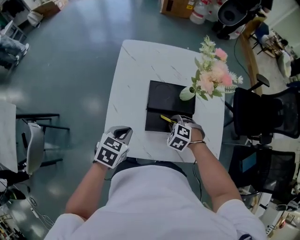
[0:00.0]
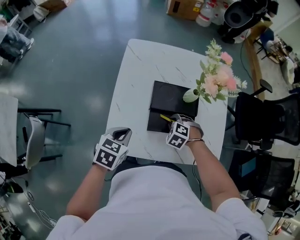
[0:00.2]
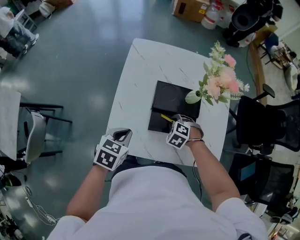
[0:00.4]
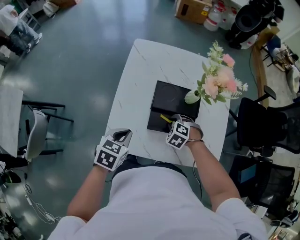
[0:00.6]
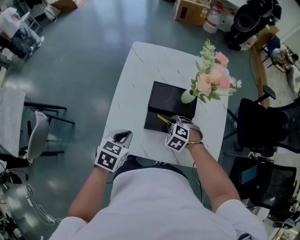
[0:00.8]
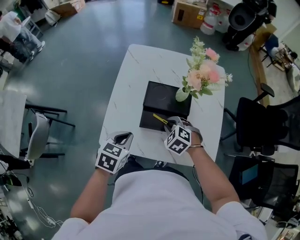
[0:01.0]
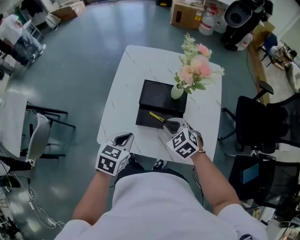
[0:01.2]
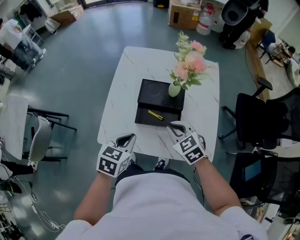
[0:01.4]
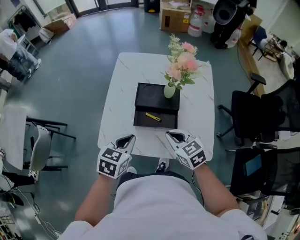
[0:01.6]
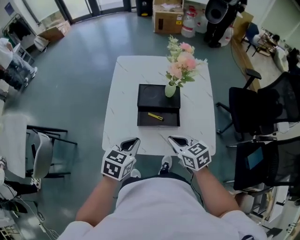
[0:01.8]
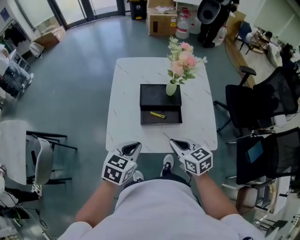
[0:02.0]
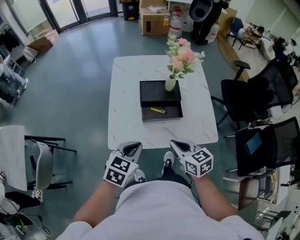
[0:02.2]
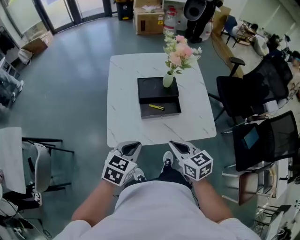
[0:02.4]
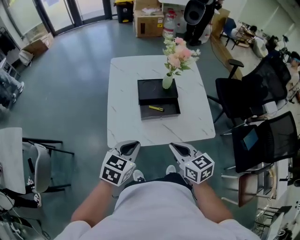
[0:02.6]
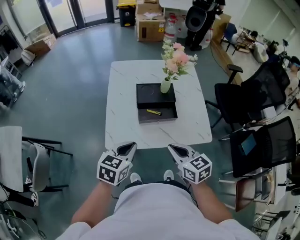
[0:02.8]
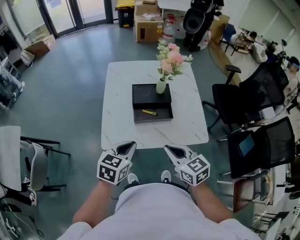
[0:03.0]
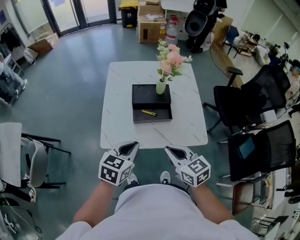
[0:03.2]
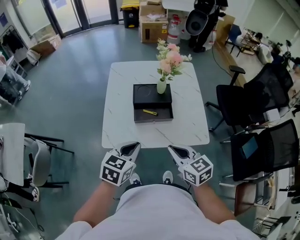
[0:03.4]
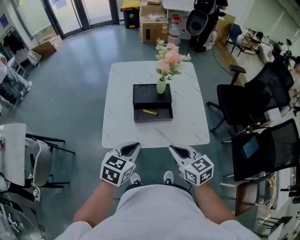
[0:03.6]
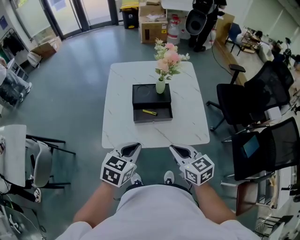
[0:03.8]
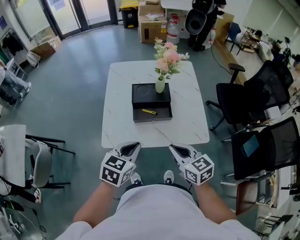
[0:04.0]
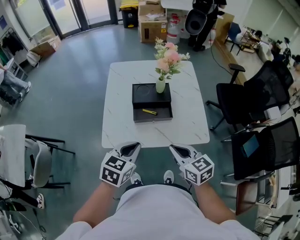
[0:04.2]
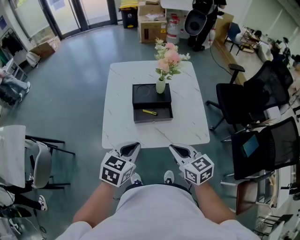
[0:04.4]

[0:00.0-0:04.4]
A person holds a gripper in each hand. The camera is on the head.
0:00.0 to 0:01.4: The left gripper goes roughly 15 cm to the right, backward and upward. The right gripper shifts some 15 cm upward and backward, and points its fingers roughly 30 degrees further upward.
0:01.4 to 0:03.0: The right gripper shifts approximately 20 cm backward and upward, and swivels roughly 30 degrees. The left gripper travels backward by approximately 10 cm.
0:03.0 to 0:04.4: The grippers move only a little.

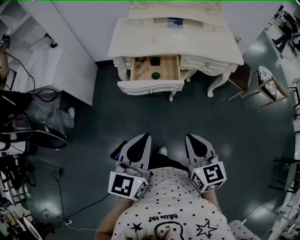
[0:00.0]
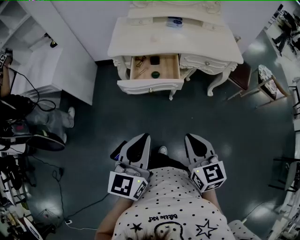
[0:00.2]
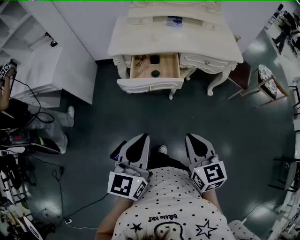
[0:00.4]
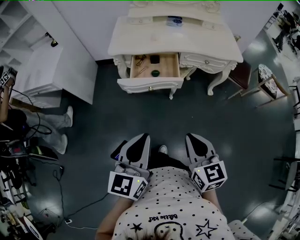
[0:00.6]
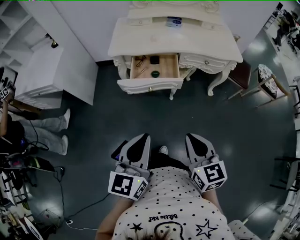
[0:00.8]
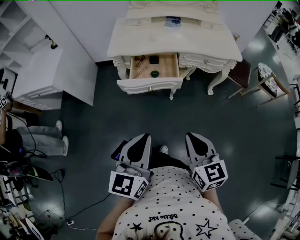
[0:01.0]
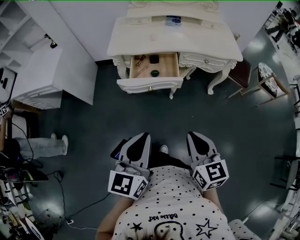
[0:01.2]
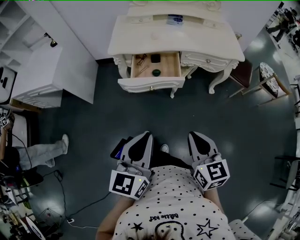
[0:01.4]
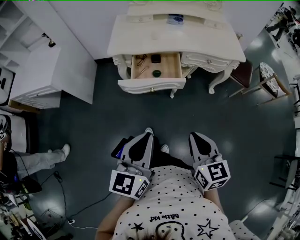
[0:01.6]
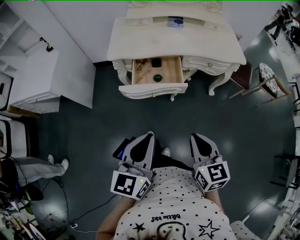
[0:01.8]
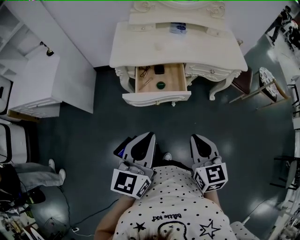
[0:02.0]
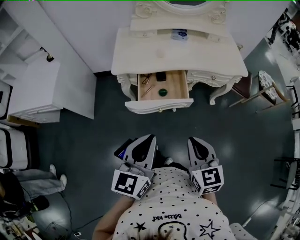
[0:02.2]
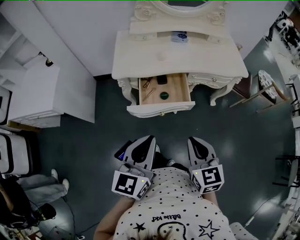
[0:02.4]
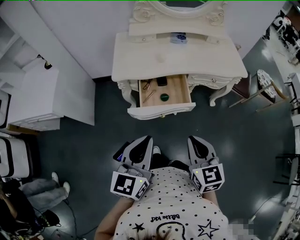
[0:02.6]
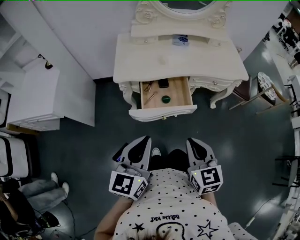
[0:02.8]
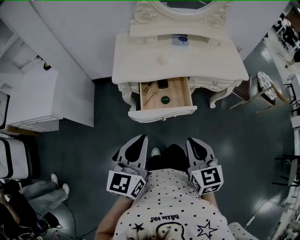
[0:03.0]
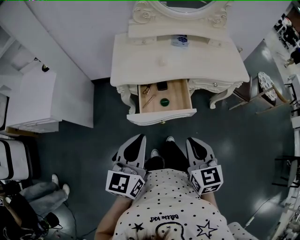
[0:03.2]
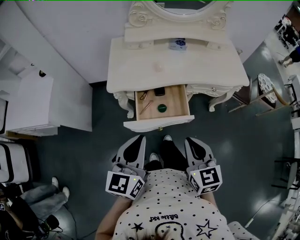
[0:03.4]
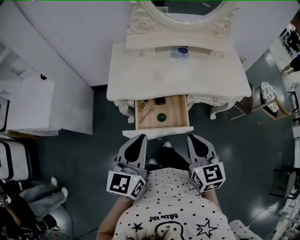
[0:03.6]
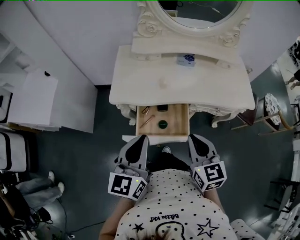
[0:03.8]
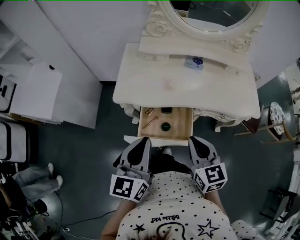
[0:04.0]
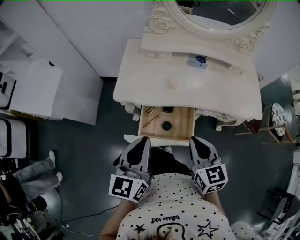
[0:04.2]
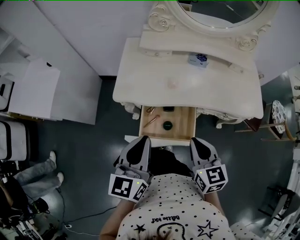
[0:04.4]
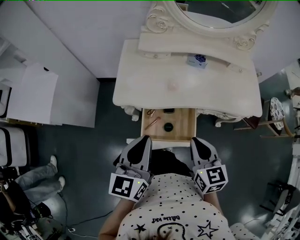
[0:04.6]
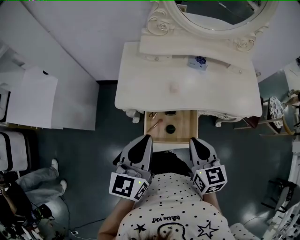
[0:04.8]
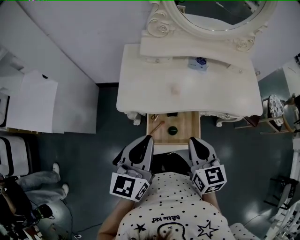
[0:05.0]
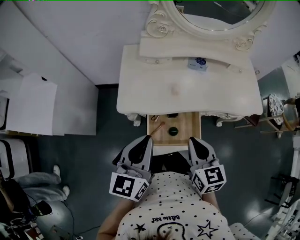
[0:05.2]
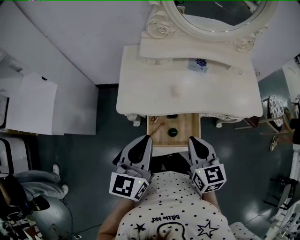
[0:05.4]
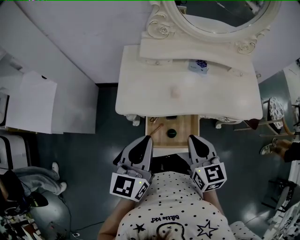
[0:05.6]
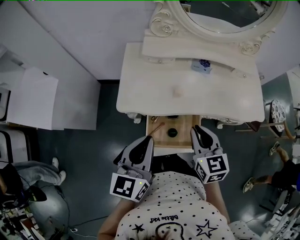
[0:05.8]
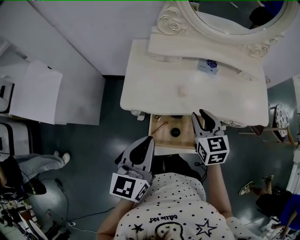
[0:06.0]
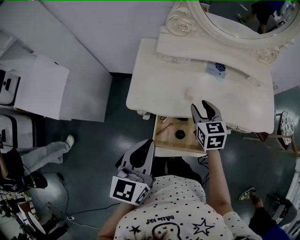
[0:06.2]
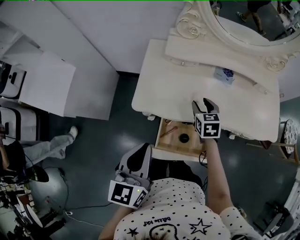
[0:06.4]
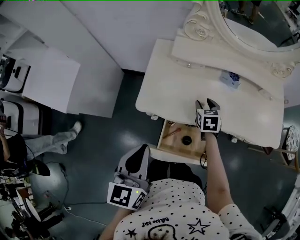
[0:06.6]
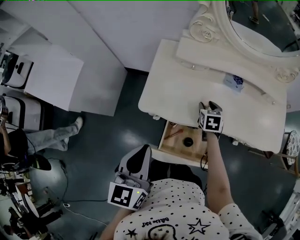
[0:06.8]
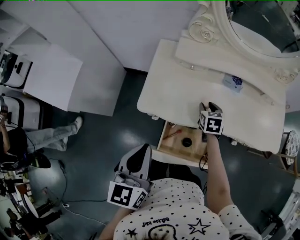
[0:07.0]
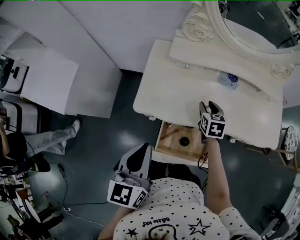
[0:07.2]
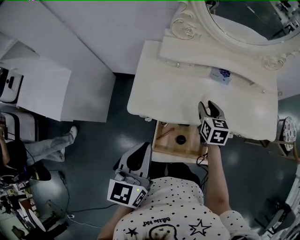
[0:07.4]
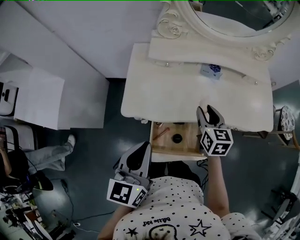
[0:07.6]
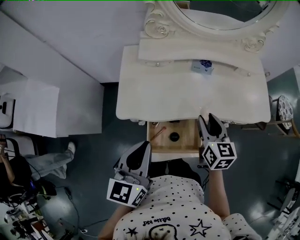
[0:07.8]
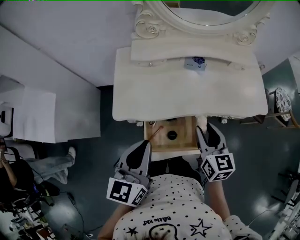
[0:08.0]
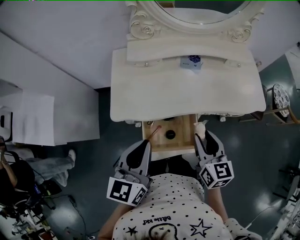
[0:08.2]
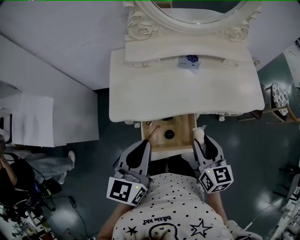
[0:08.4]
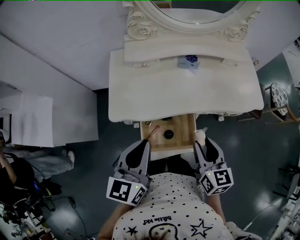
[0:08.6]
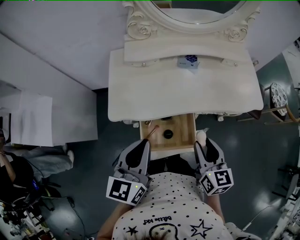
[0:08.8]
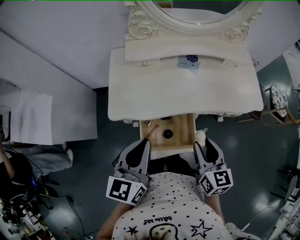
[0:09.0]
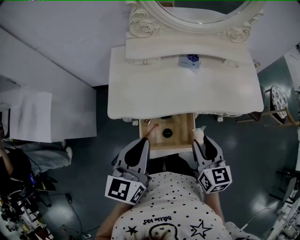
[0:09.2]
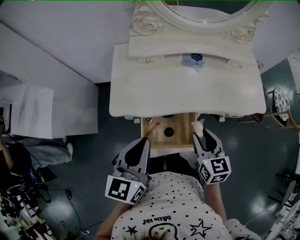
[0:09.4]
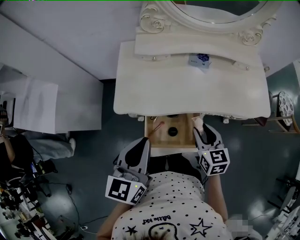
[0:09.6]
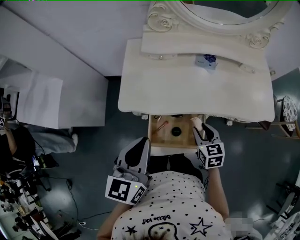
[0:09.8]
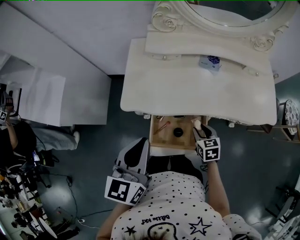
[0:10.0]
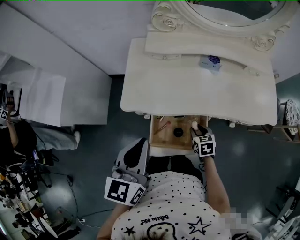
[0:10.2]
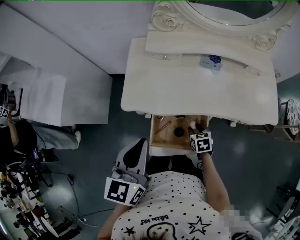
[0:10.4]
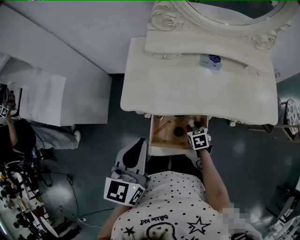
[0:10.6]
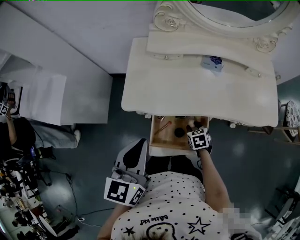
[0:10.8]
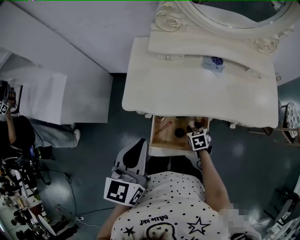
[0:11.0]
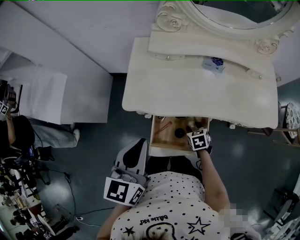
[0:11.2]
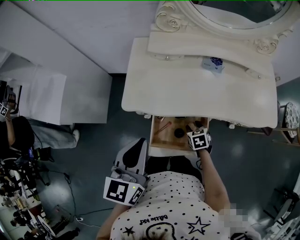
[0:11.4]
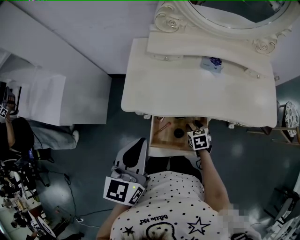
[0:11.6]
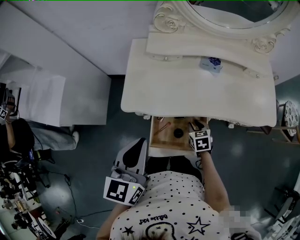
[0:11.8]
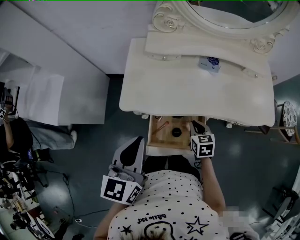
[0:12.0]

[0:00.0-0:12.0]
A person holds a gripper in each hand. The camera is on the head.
0:00.0 to 0:01.6: The grippers move only a little.
0:01.6 to 0:03.0: The two grippers go some 15 cm forward and to the left.
0:03.0 to 0:04.4: Both grippers move forward, approximately 20 cm.
0:04.4 to 0:06.0: The right gripper travels forward by approximately 15 cm, and opens up. Meanwhile the left gripper travels forward by some 5 cm.
0:06.0 to 0:07.6: The right gripper shifts approximately 5 cm forward, and reaches roughly 15 cm downward, then returns.
0:07.6 to 0:09.0: The left gripper changes place by about 5 cm, while the right gripper is displaced backward by some 15 cm.
0:09.0 to 0:10.4: The right gripper heads downward, covering roughly 25 cm, and tips its fingers downward by roughly 30 degrees.
0:10.4 to 0:12.0: The right gripper goes some 10 cm upward, and closes its fingers.

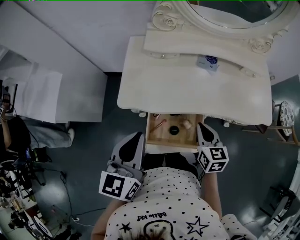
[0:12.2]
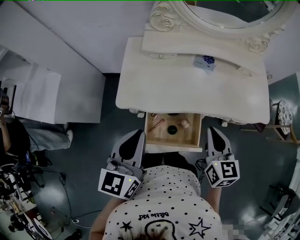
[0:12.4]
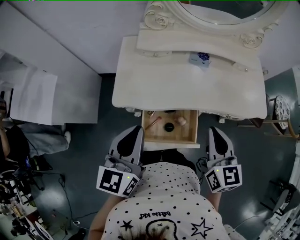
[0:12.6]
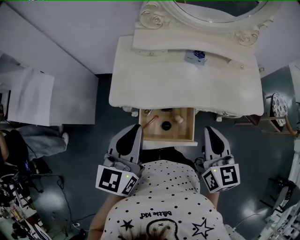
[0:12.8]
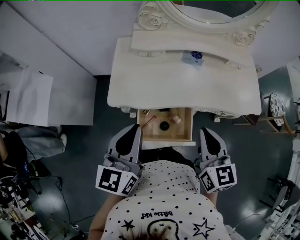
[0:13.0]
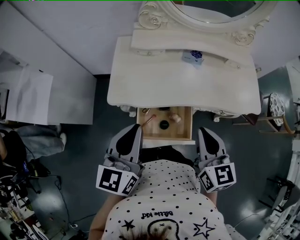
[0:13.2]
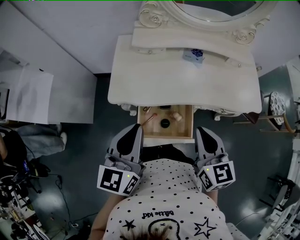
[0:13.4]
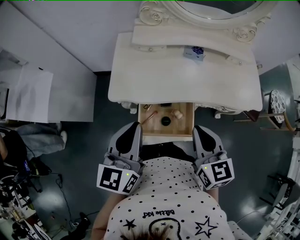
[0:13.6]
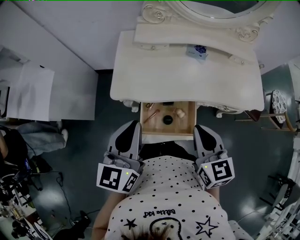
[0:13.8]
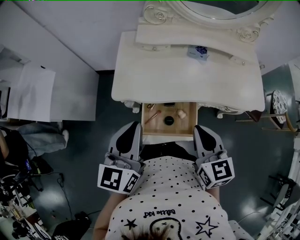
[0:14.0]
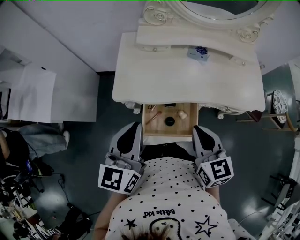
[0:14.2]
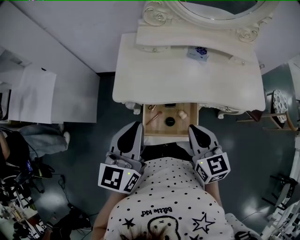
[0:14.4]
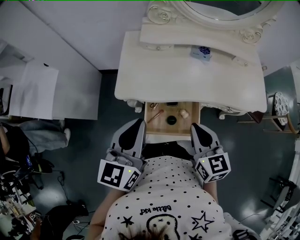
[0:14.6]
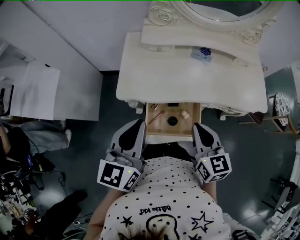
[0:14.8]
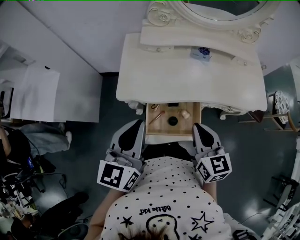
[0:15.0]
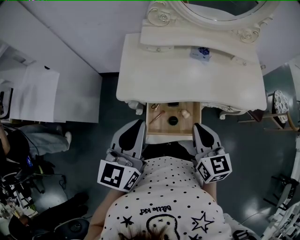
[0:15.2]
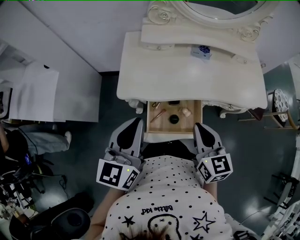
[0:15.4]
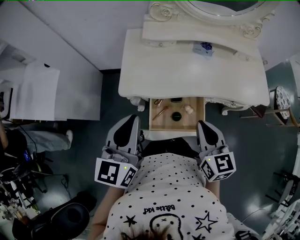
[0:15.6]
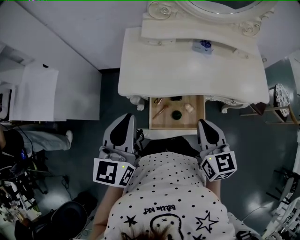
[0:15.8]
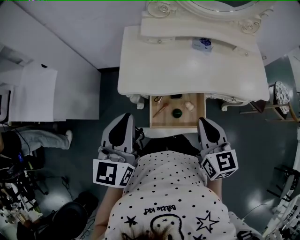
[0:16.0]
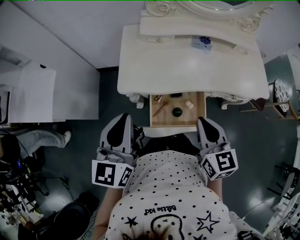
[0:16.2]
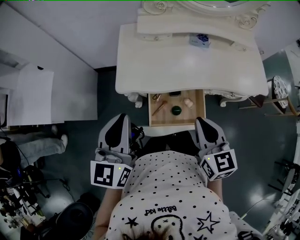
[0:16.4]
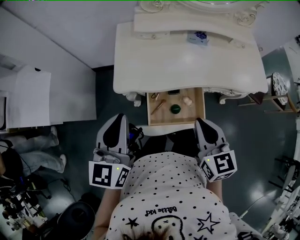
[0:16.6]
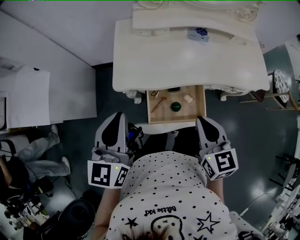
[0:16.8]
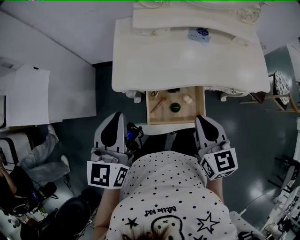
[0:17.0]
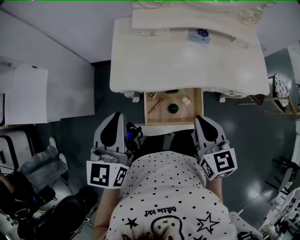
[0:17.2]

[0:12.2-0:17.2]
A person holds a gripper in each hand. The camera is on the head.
0:12.2 to 0:13.8: The right gripper travels upward and backward by about 15 cm.
0:13.8 to 0:15.6: The grippers stay close to where they were, moving slightly.
0:15.6 to 0:17.2: The grippers stay close to where they were, moving slightly.

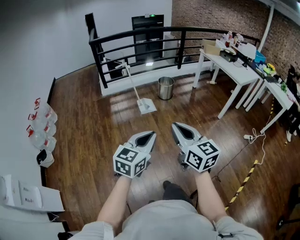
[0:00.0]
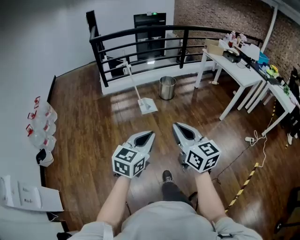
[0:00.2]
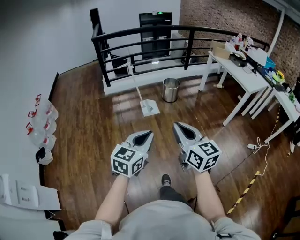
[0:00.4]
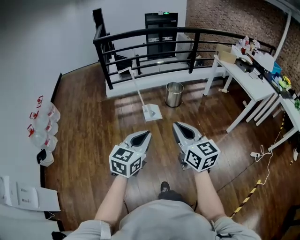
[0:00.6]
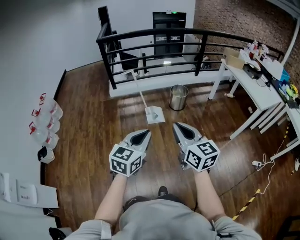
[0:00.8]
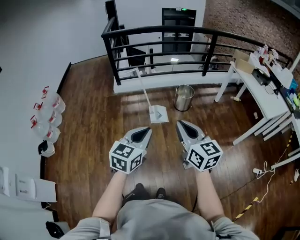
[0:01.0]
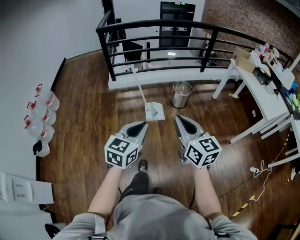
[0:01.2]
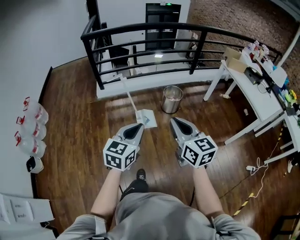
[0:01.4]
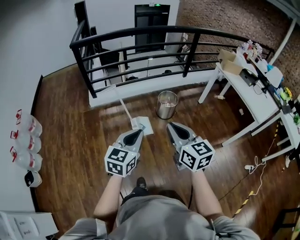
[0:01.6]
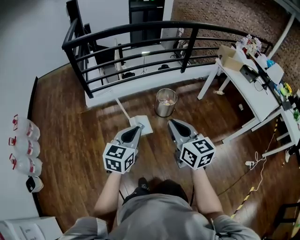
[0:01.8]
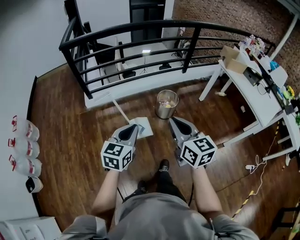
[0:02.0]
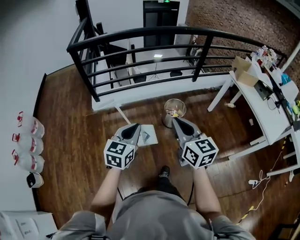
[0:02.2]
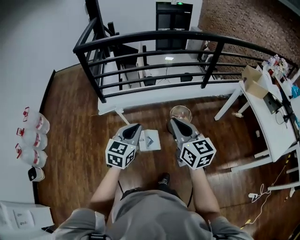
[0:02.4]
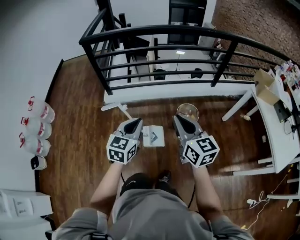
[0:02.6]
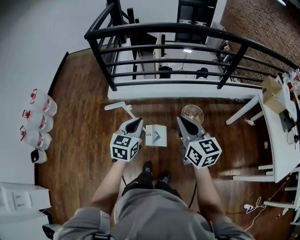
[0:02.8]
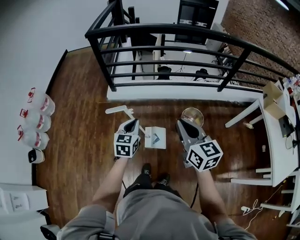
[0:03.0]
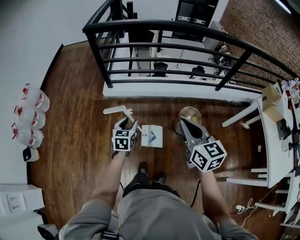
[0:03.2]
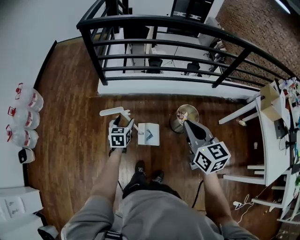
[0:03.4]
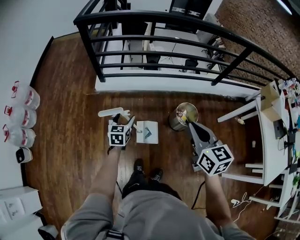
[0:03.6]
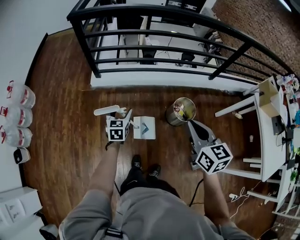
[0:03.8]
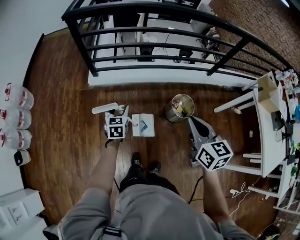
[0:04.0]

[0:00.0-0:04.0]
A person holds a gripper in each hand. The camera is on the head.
0:00.0 to 0:01.4: Both grippers are carried forward, roughly 50 cm.
0:01.4 to 0:02.6: The two grippers go approximately 35 cm forward.
0:02.6 to 0:04.0: The left gripper goes roughly 30 cm forward, downward and to the left, rotates about 20 degrees, and opens its fingers, while the right gripper goes some 15 cm forward and downward.
